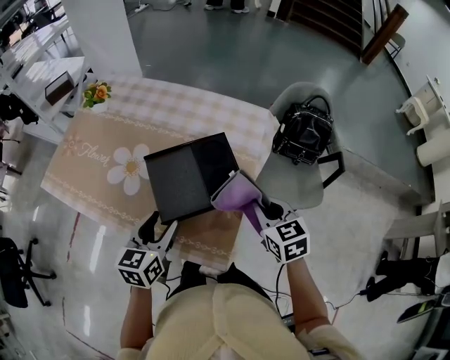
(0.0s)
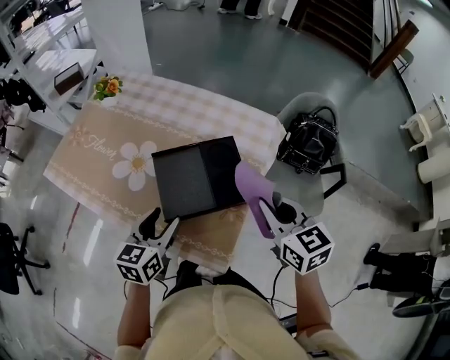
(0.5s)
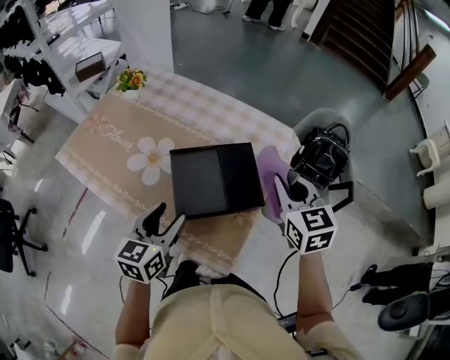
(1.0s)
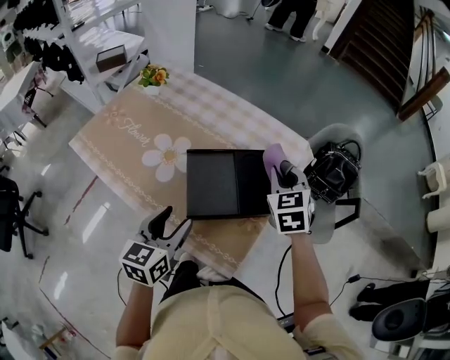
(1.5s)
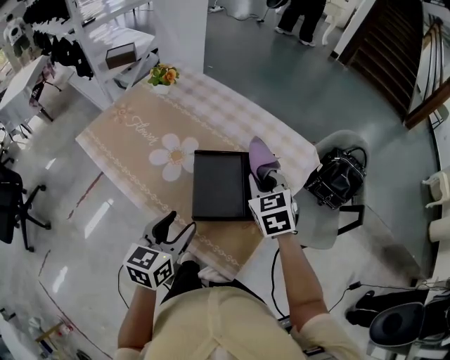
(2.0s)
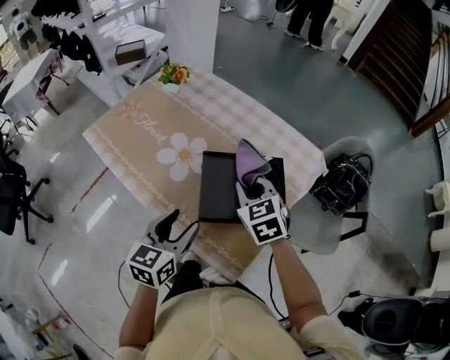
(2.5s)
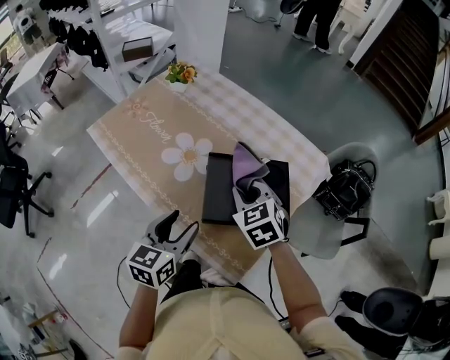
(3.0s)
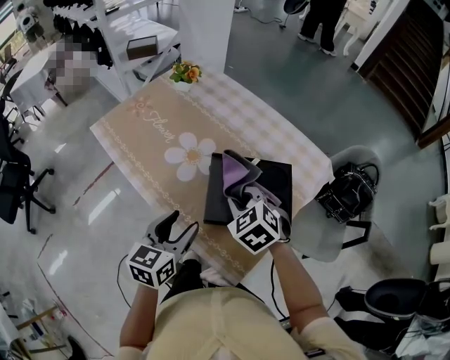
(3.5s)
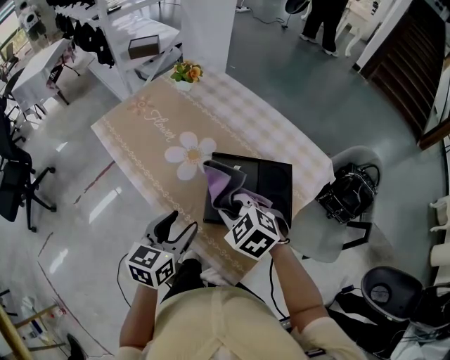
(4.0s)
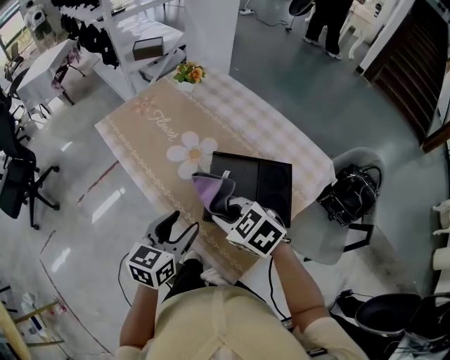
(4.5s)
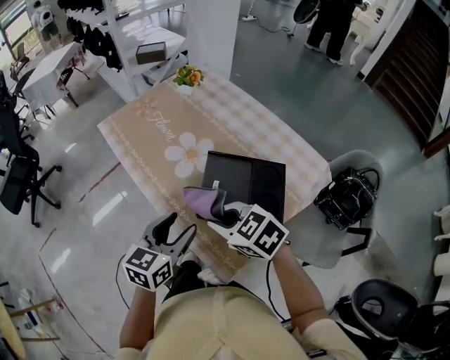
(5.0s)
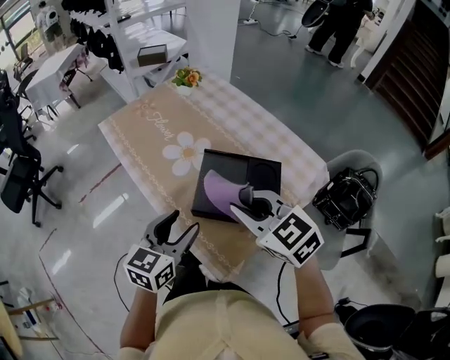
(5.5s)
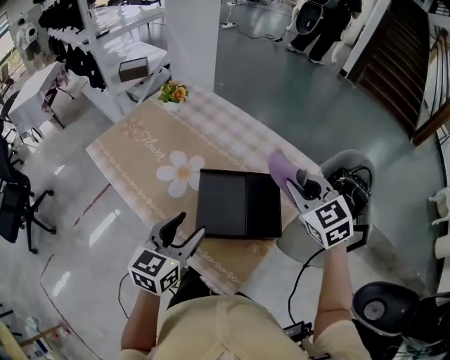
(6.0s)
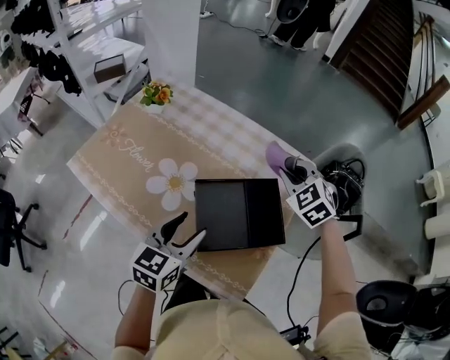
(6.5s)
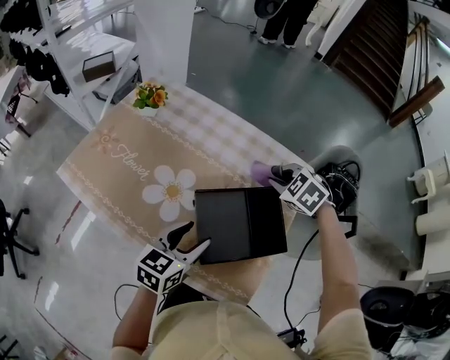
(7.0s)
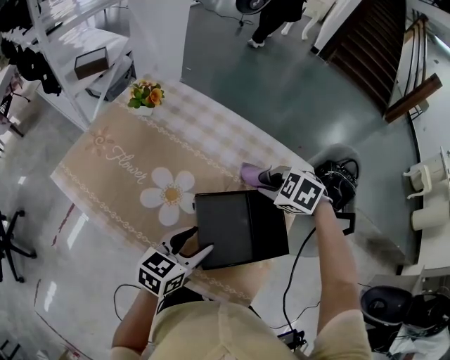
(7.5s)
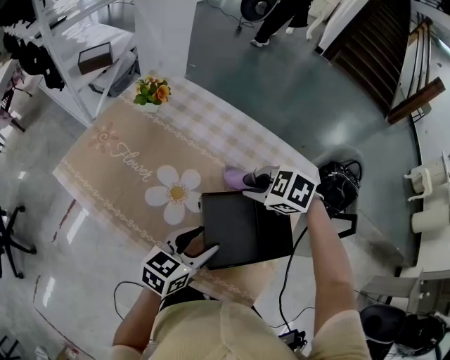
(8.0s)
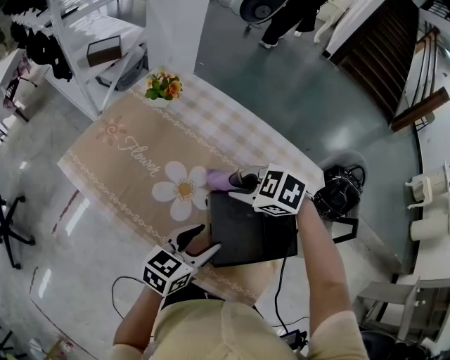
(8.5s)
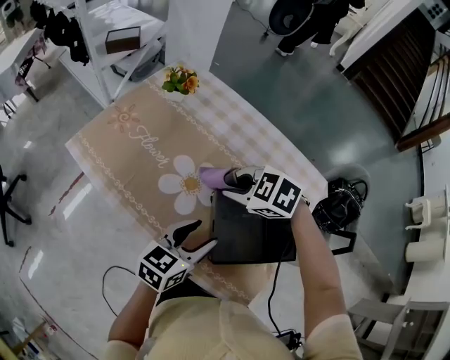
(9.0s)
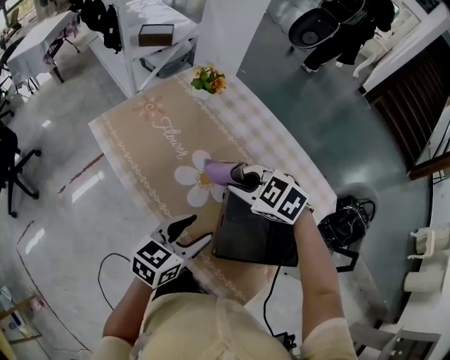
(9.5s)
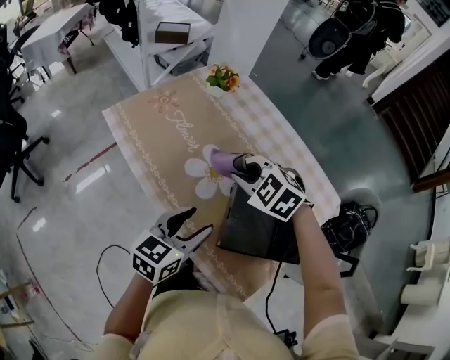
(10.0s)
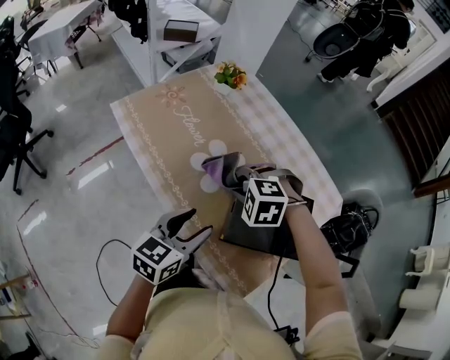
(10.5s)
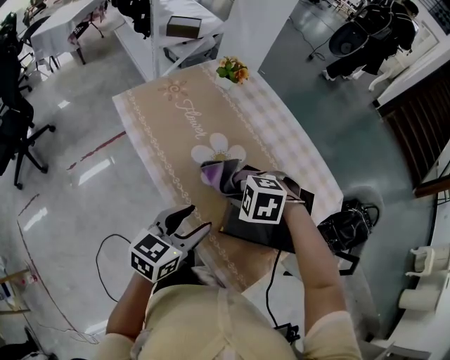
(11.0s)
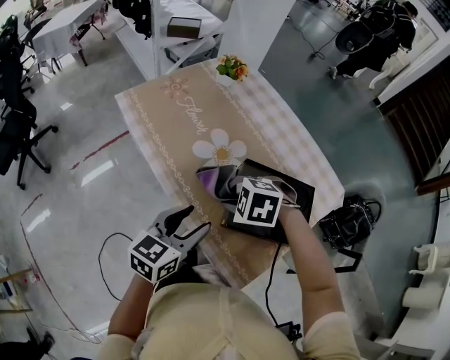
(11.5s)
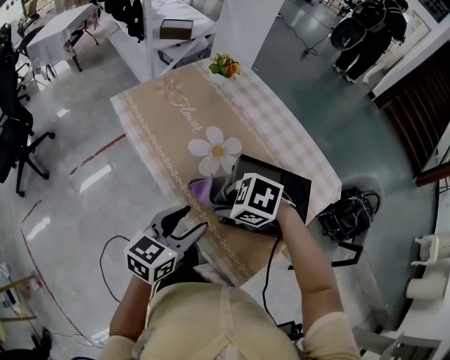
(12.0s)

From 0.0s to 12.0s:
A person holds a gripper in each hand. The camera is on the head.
From 0.0s to 2.0s: The right gripper goes some 15 cm to the left and forward, and changes its angle by approximately 20 degrees, while the left gripper shifts by about 5 cm.
From 2.0s to 4.0s: The right gripper shifts some 15 cm to the left and backward, and turns by roughly 40 degrees.
From 4.0s to 6.0s: The right gripper shifts by about 25 cm, and swivels some 30 degrees. Meanwhile the left gripper ends up roughly 5 cm from where it was.
From 6.0s to 8.0s: The right gripper moves some 20 cm, and tilts its fingers about 30 degrees downward. Meanwhile the left gripper goes approximately 5 cm downward, and turns by about 30 degrees.
From 8.0s to 10.0s: The right gripper moves approximately 15 cm, and changes its angle by some 30 degrees. The left gripper shifts by approximately 10 cm, and rotates approximately 20 degrees.
From 10.0s to 12.0s: The left gripper moves some 5 cm, while the right gripper changes place by some 15 cm, and turns by approximately 30 degrees.

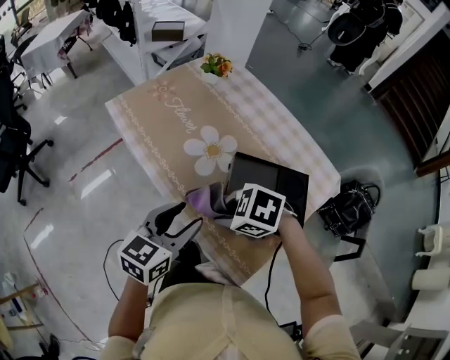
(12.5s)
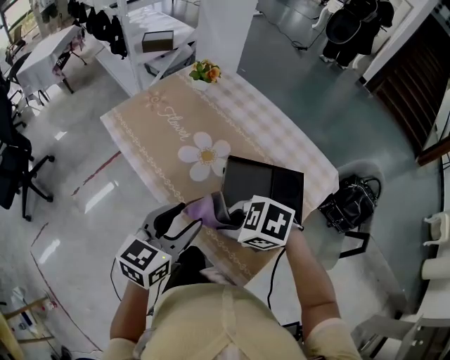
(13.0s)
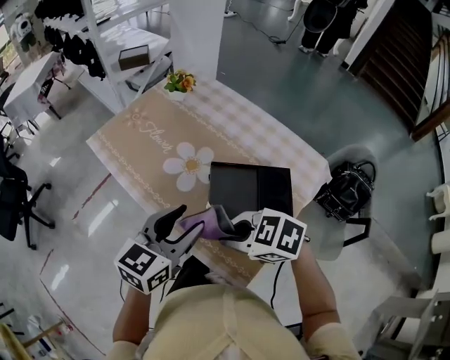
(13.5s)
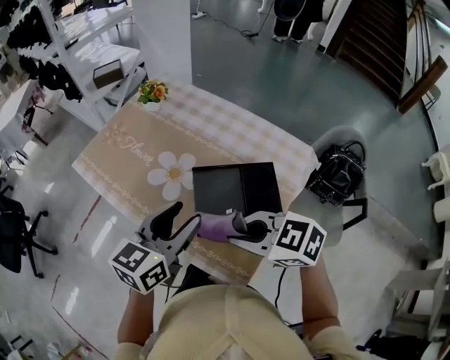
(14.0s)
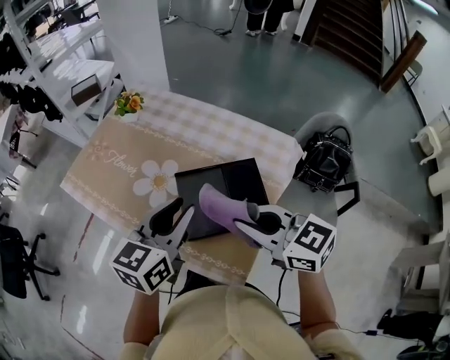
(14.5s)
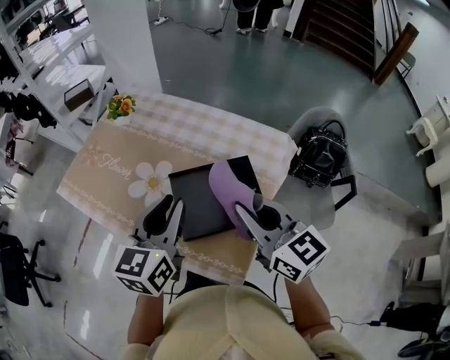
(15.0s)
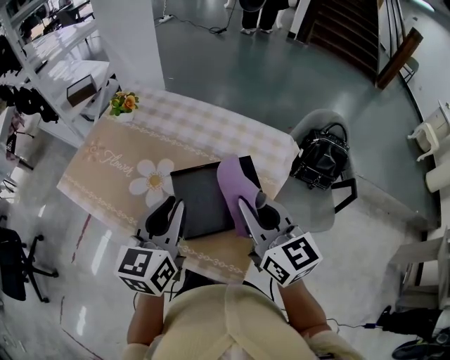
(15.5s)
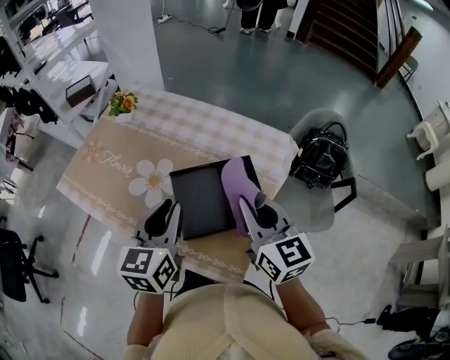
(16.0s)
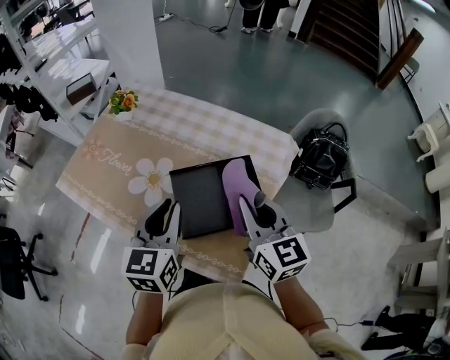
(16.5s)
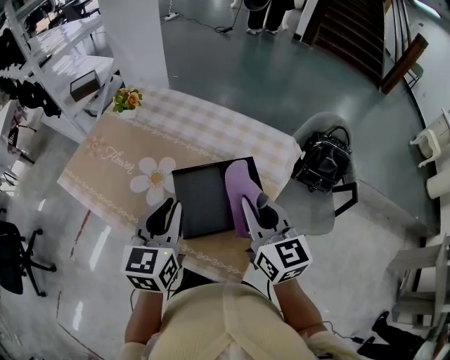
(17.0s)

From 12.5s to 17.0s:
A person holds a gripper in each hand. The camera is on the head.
From 12.5s to 14.5s: The left gripper shifts by about 15 cm, and closes. Meanwhile the right gripper changes place by roughly 20 cm, and points its fingers about 40 degrees further upward.
From 14.5s to 17.0s: The right gripper changes place by some 5 cm, and swivels approximately 40 degrees.

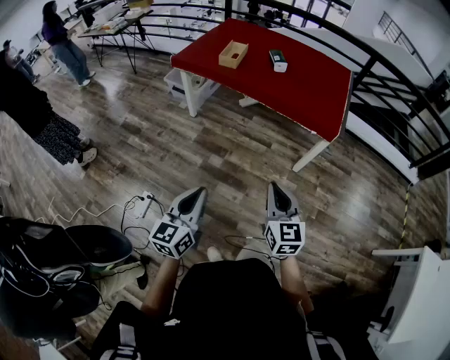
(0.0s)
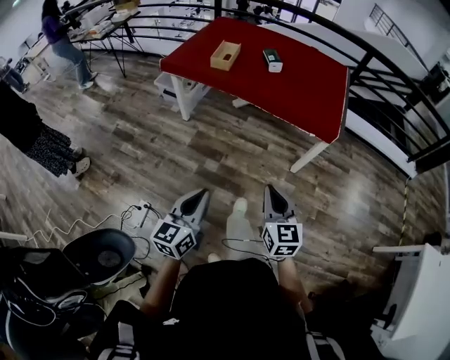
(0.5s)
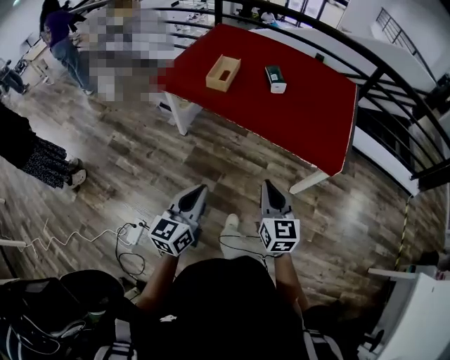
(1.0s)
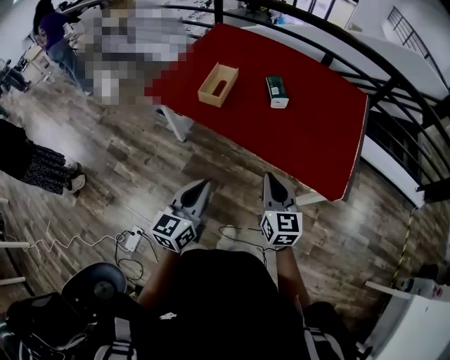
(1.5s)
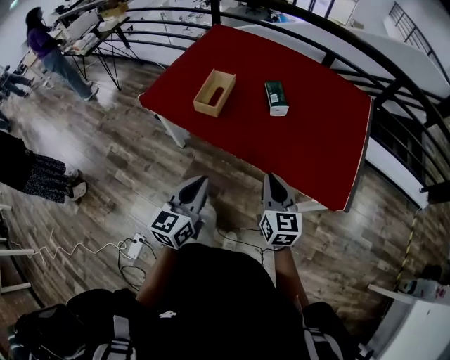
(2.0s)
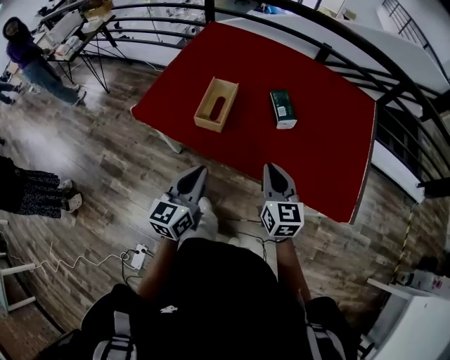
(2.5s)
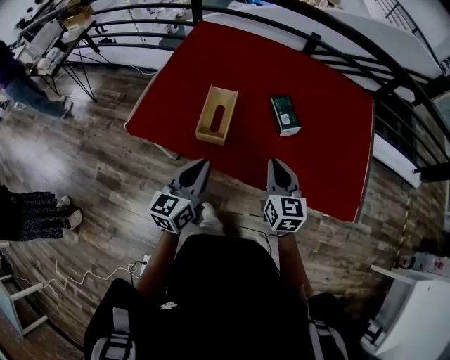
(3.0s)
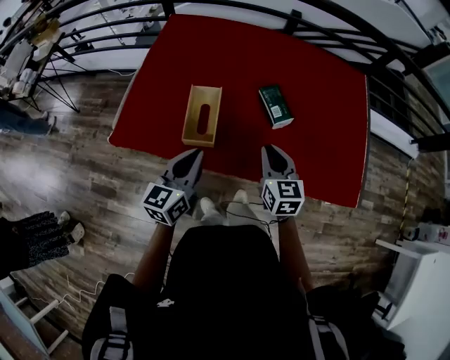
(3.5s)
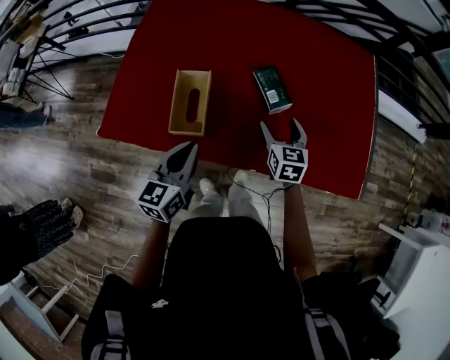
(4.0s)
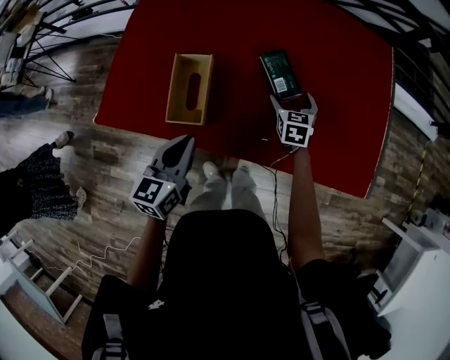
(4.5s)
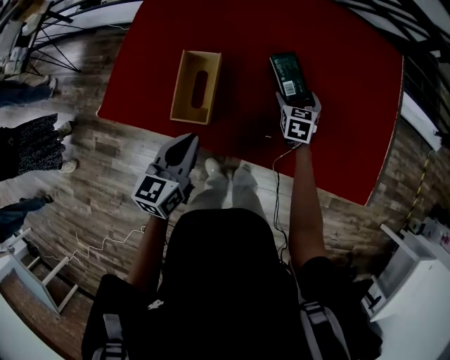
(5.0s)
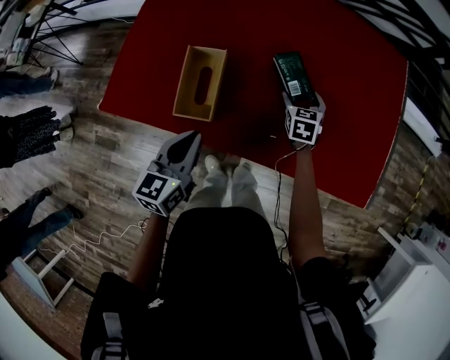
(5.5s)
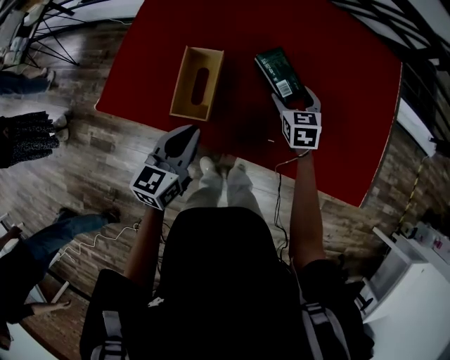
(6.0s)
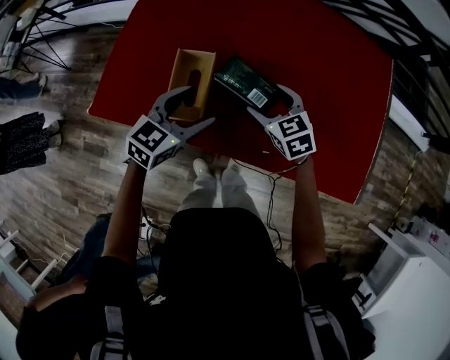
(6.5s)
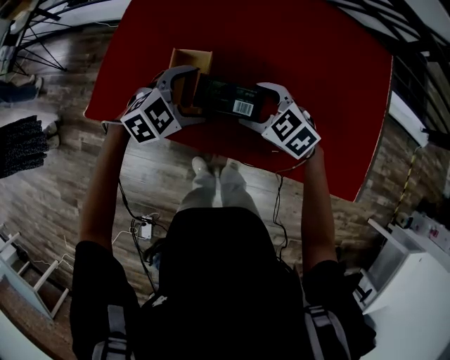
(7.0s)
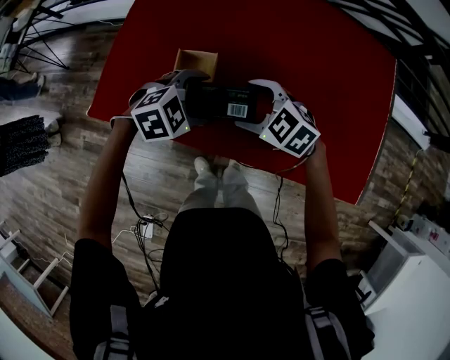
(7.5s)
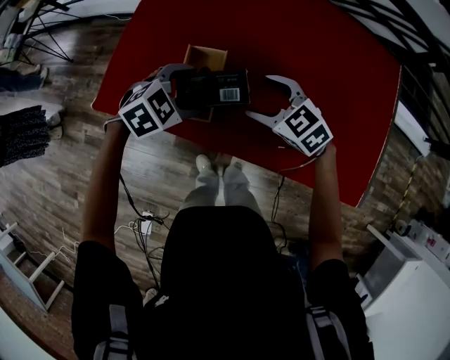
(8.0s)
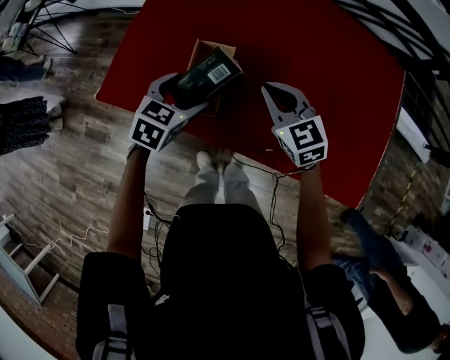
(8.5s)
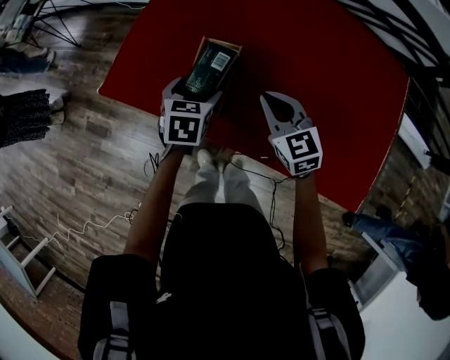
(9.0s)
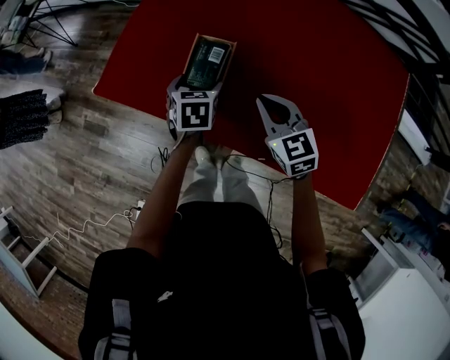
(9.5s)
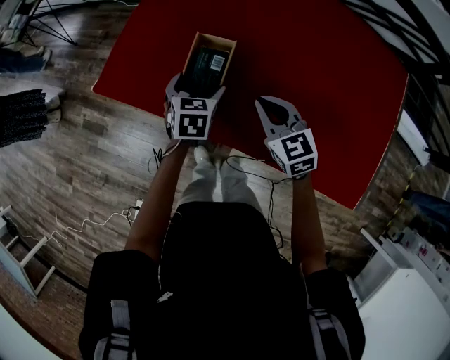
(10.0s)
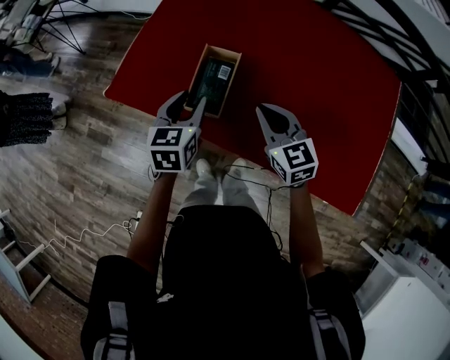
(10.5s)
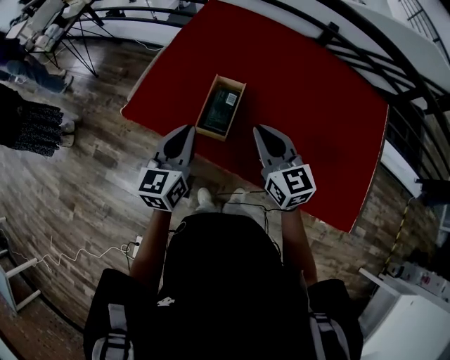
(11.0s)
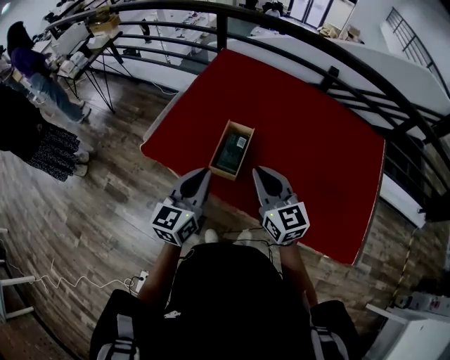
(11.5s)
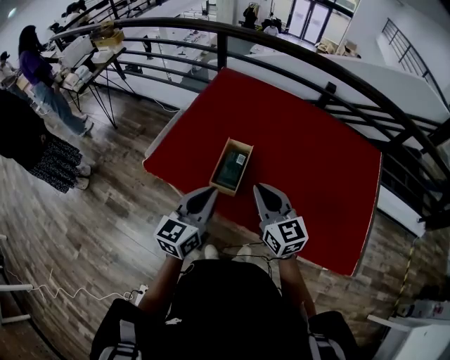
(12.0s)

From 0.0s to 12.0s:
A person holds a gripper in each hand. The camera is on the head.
From 0.0s to 2.0s: The pair of grippers is taken forward, some 50 cm.
From 2.0s to 4.0s: Both grippers travel together forward, roughly 35 cm. The right gripper turns by approximately 30 degrees, and opens.
From 4.0s to 6.0s: The right gripper travels forward and downward by some 10 cm.
From 6.0s to 8.0s: The right gripper moves approximately 15 cm, and turns by some 40 degrees, while the left gripper ends up about 10 cm from where it was, angles its fingers downward, by roughly 30 degrees, and opens up.
From 8.0s to 10.0s: The right gripper closes its fingers; the left gripper moves downward, roughly 5 cm, and changes its angle by approximately 60 degrees.
From 10.0s to 12.0s: Both grippers move upward and backward, some 25 cm. The left gripper tips its fingers upward by roughly 40 degrees, and closes; the right gripper changes its angle by some 20 degrees.
